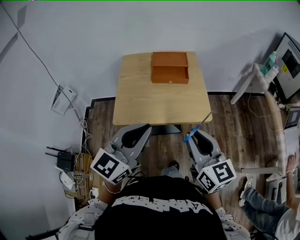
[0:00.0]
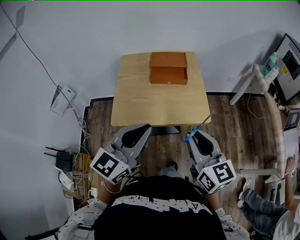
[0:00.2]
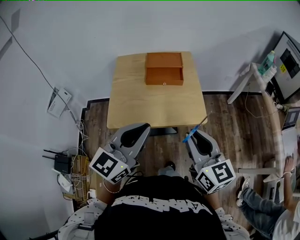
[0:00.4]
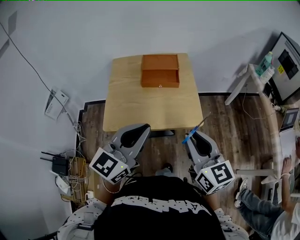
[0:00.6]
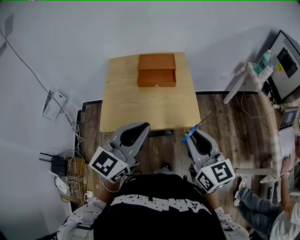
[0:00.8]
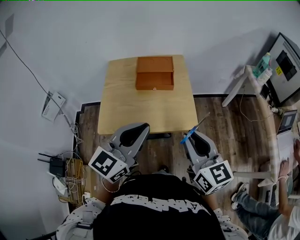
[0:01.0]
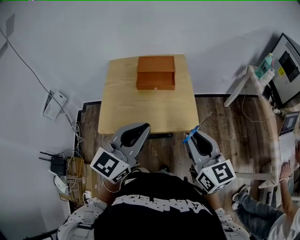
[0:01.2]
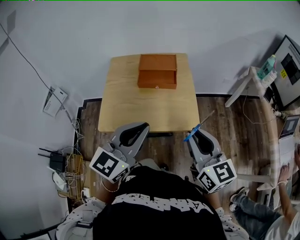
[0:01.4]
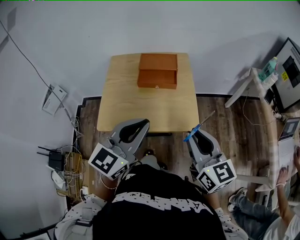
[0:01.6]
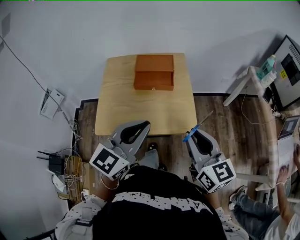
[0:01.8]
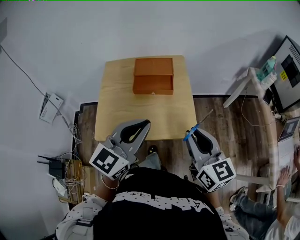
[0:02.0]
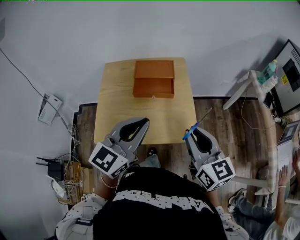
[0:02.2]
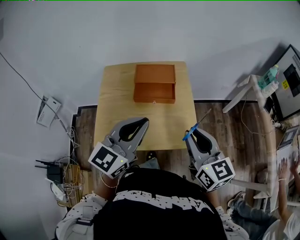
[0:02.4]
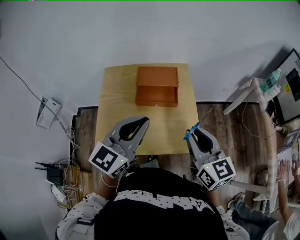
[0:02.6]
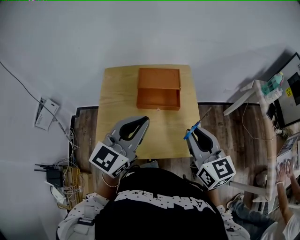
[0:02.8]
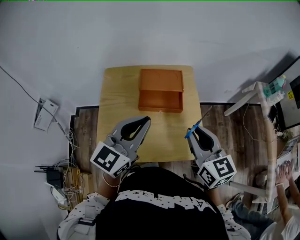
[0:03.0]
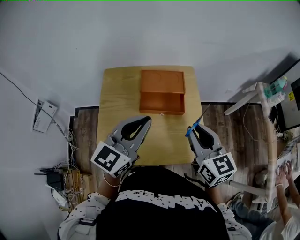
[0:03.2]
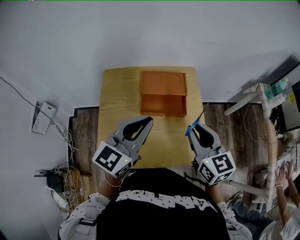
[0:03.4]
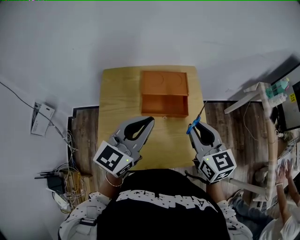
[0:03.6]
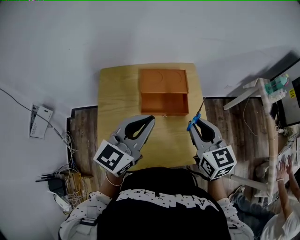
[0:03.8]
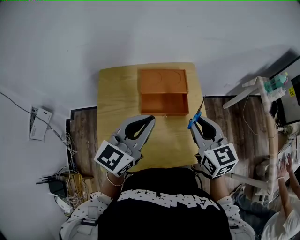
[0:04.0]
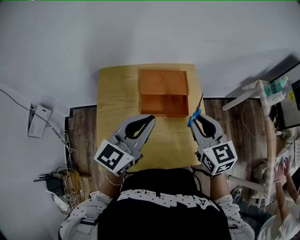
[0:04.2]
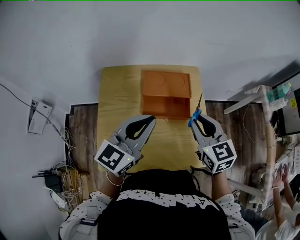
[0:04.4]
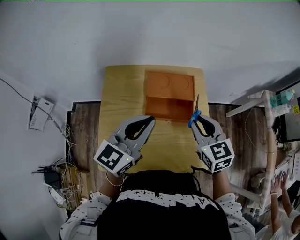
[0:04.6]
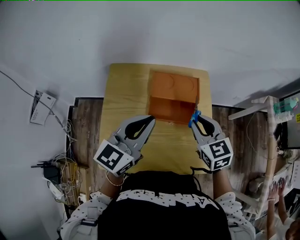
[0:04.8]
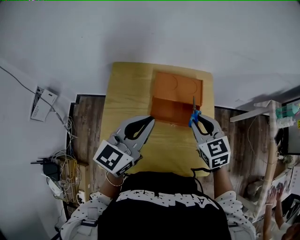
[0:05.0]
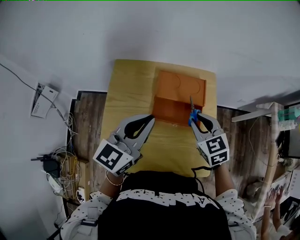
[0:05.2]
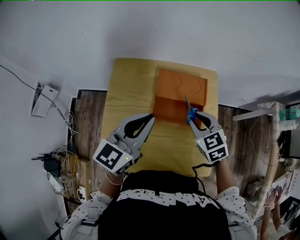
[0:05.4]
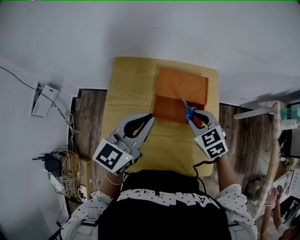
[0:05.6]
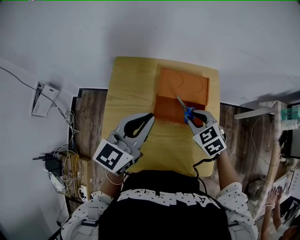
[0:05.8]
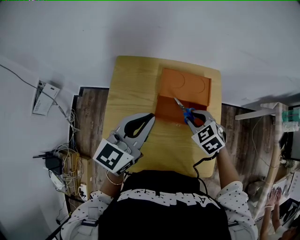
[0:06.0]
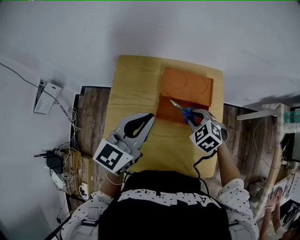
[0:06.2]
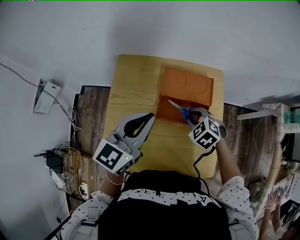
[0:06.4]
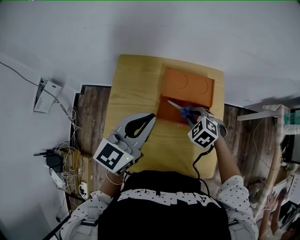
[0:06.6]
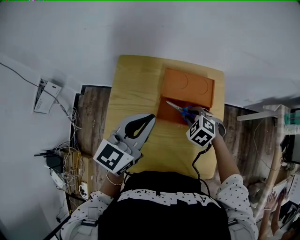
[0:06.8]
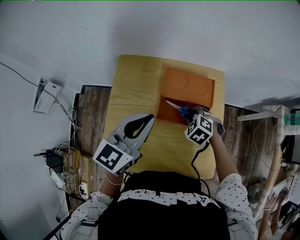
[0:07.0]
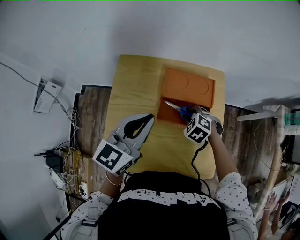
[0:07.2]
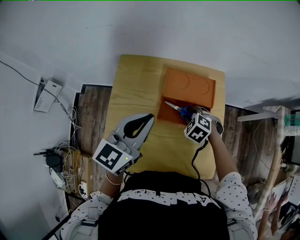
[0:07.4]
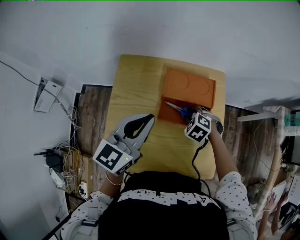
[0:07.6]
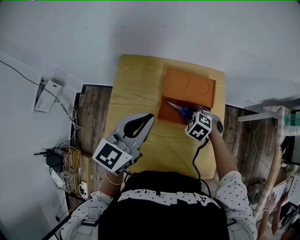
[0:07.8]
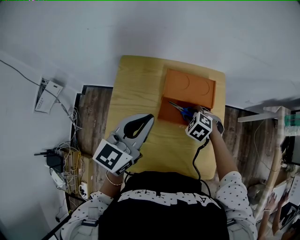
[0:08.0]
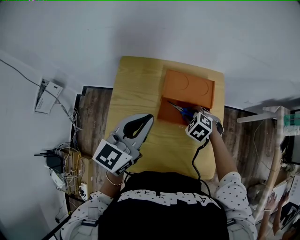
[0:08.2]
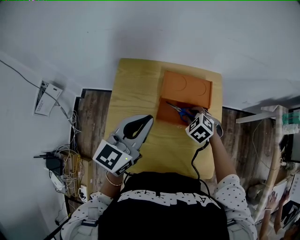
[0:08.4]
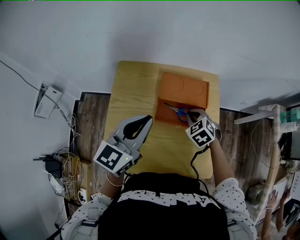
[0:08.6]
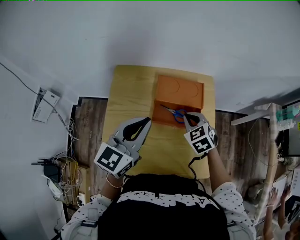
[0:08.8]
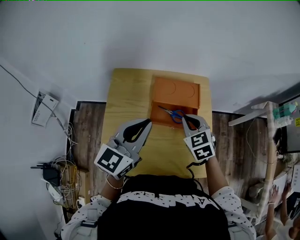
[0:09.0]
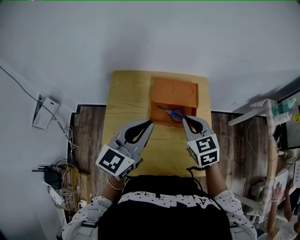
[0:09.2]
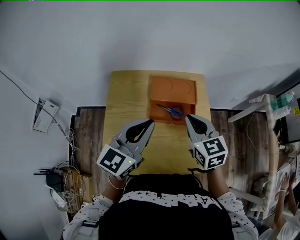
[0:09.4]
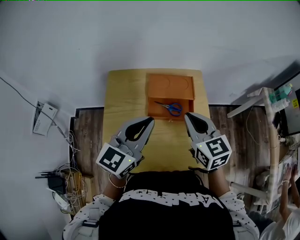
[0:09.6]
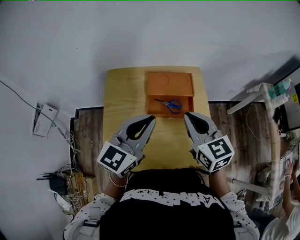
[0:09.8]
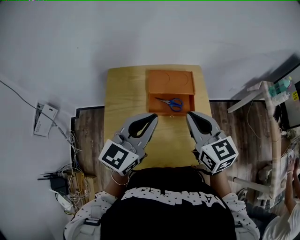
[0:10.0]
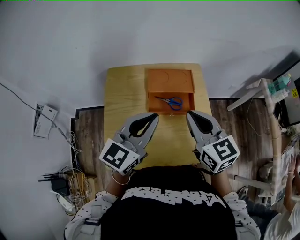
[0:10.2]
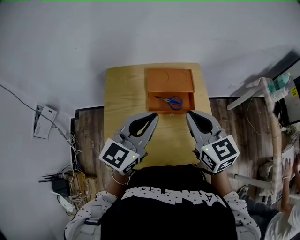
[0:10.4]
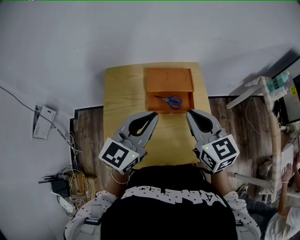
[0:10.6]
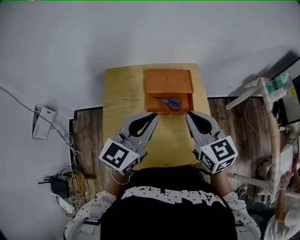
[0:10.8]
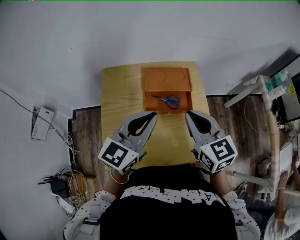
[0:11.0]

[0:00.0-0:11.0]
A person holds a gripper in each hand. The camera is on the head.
0:00.0 to 0:01.6: The two grippers go about 10 cm forward and to the right.
0:01.6 to 0:03.2: The grippers both shift forward by about 20 cm.
0:03.2 to 0:04.8: The right gripper heads forward and downward, covering approximately 15 cm, and turns by roughly 20 degrees, while the left gripper goes approximately 10 cm forward and to the left.
0:04.8 to 0:06.2: The right gripper goes roughly 10 cm downward, and turns by roughly 40 degrees.
0:06.2 to 0:07.8: The right gripper goes about 5 cm downward.
0:07.8 to 0:09.4: The left gripper shifts about 5 cm backward. Meanwhile the right gripper shifts some 20 cm upward, angles its fingers upward, by some 50 degrees, and closes its fingers.
0:09.4 to 0:11.0: The right gripper ends up approximately 5 cm from where it was.

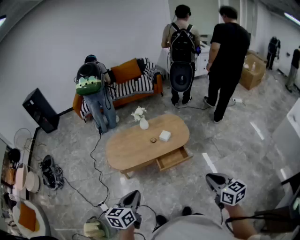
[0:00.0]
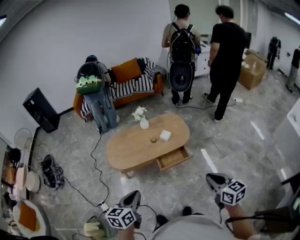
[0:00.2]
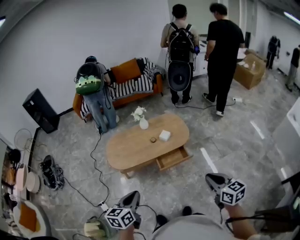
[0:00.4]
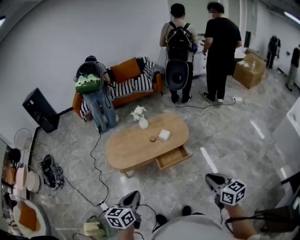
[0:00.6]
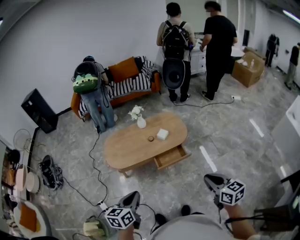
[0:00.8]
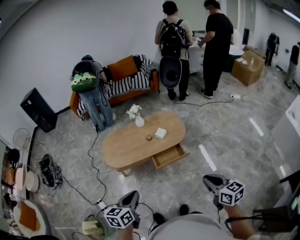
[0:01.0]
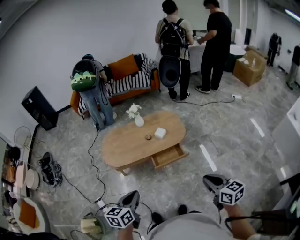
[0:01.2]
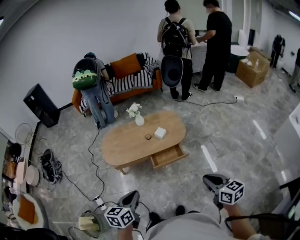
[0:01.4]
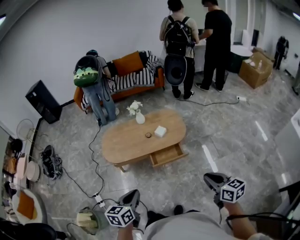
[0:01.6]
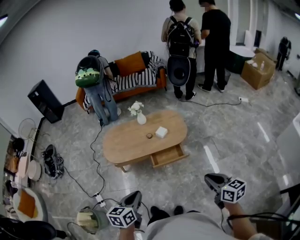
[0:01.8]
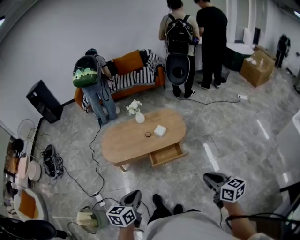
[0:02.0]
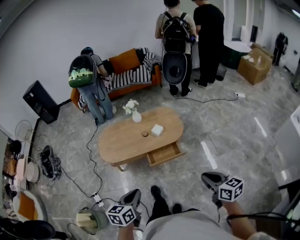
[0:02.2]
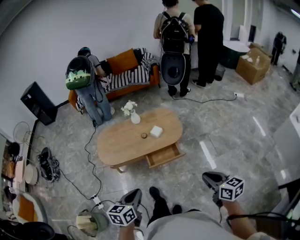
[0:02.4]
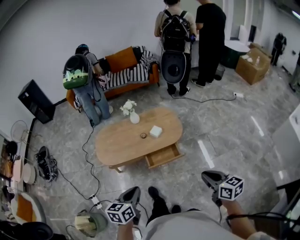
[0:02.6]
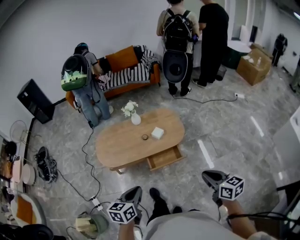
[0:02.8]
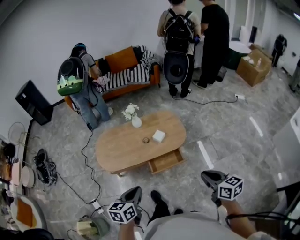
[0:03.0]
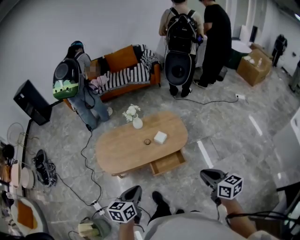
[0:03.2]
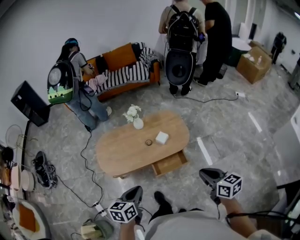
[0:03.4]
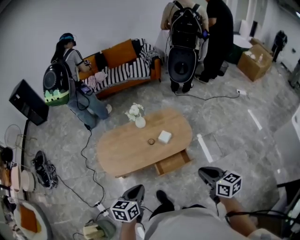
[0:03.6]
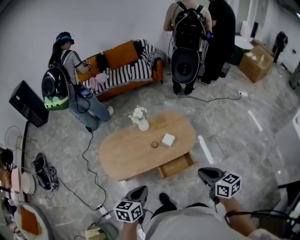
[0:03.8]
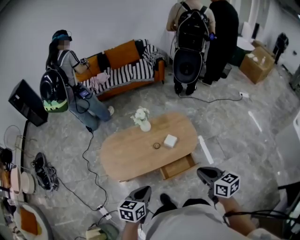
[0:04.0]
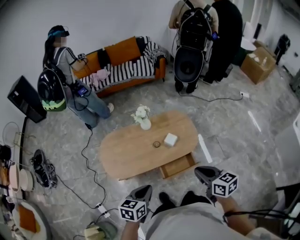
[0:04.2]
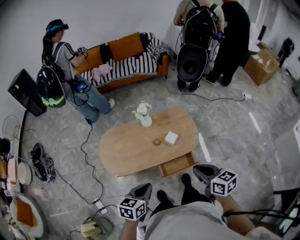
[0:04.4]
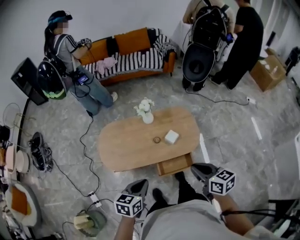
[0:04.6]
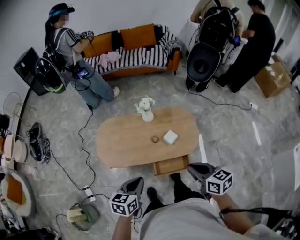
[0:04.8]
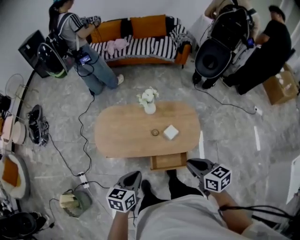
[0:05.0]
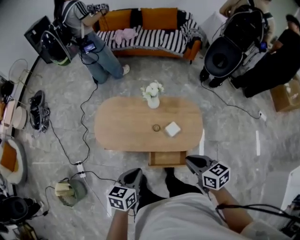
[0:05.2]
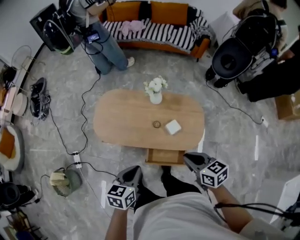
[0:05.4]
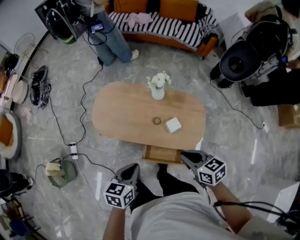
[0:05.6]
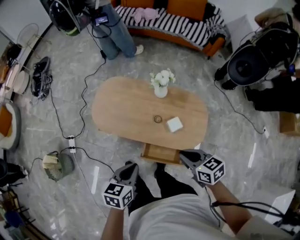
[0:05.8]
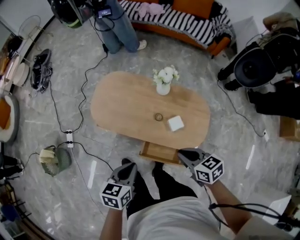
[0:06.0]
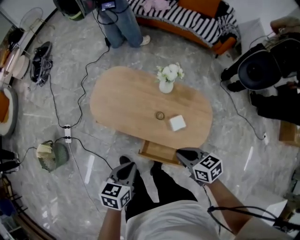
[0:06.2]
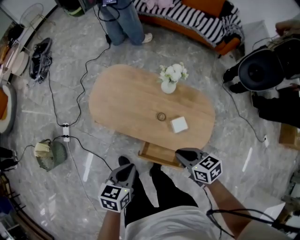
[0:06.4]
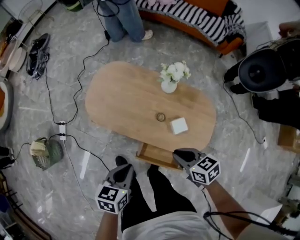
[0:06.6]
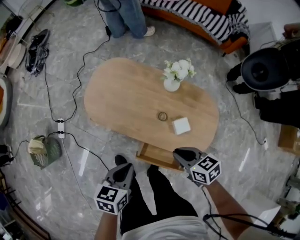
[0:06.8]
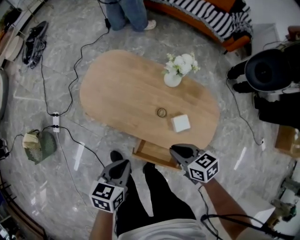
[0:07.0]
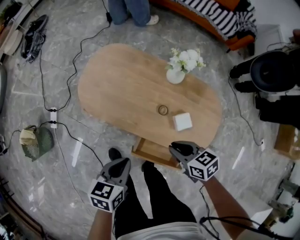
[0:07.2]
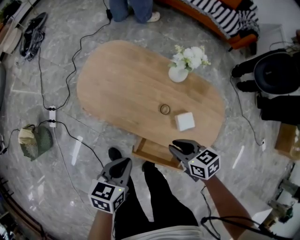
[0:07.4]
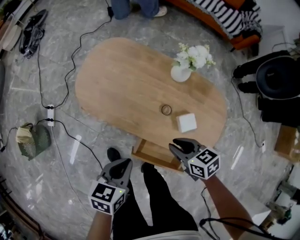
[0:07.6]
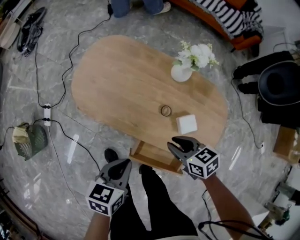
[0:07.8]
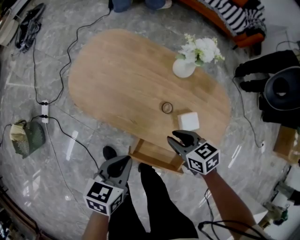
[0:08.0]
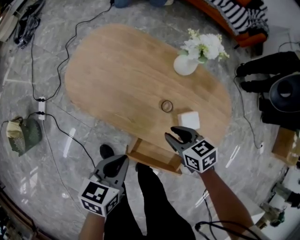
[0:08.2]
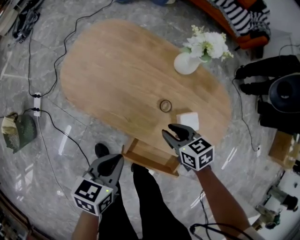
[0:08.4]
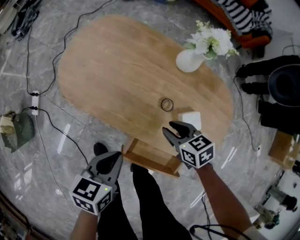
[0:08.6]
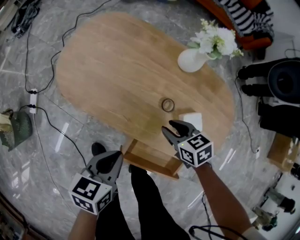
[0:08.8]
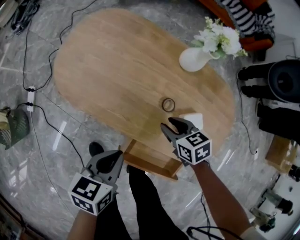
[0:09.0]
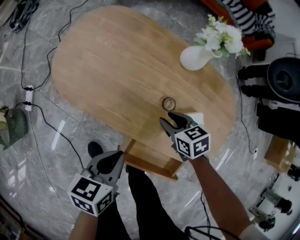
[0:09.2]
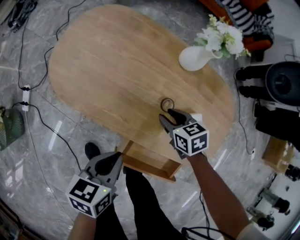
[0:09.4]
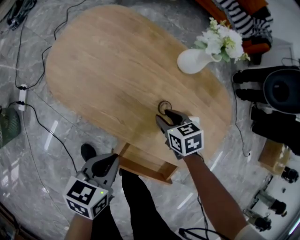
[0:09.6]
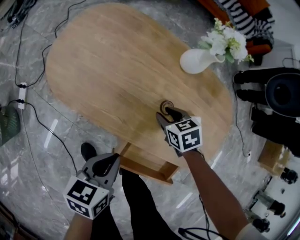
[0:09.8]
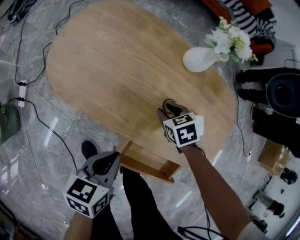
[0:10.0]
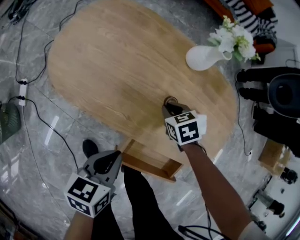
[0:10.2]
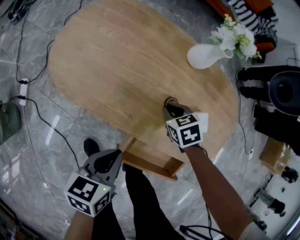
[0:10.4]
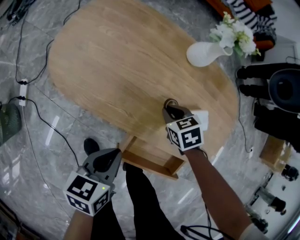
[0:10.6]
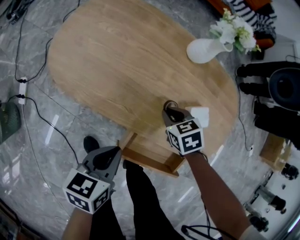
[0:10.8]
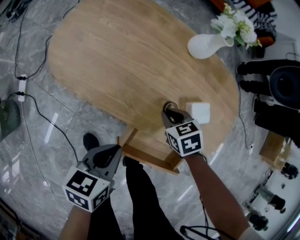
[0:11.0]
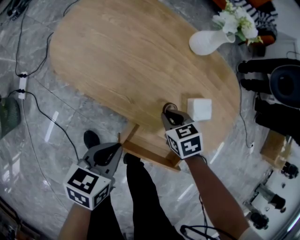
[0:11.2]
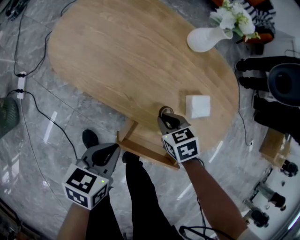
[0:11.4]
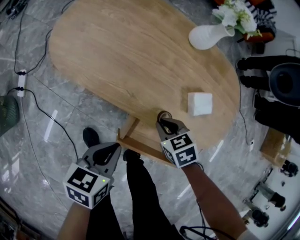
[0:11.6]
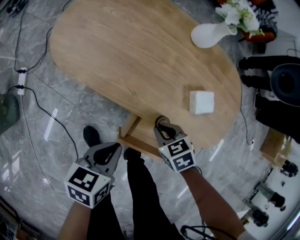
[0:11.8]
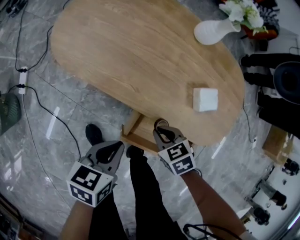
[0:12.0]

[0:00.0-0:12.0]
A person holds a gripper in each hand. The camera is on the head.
0:00.0 to 0:01.6: The two grippers go roughly 10 cm to the right.
0:01.6 to 0:03.0: Both grippers move forward, about 15 cm.
0:03.0 to 0:04.4: The right gripper moves forward and to the left, roughly 25 cm. Meanwhile the left gripper goes approximately 15 cm forward.
0:04.4 to 0:06.0: The right gripper shifts by roughly 20 cm, and changes its angle by roughly 40 degrees. Meanwhile the left gripper changes place by approximately 10 cm, and changes its angle by roughly 40 degrees.
0:06.0 to 0:07.6: The two grippers go about 20 cm downward.
0:07.6 to 0:09.0: Both grippers move downward, approximately 15 cm.
0:09.0 to 0:10.4: The right gripper goes about 5 cm downward, and closes its fingers.
0:10.4 to 0:12.0: The left gripper goes roughly 5 cm backward, while the right gripper travels backward by about 20 cm.

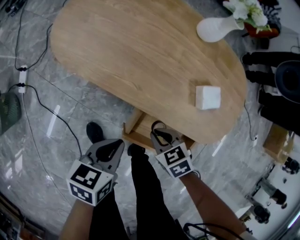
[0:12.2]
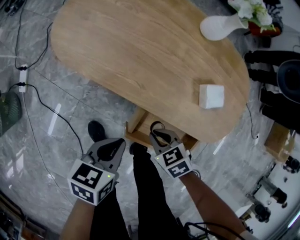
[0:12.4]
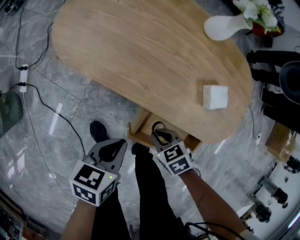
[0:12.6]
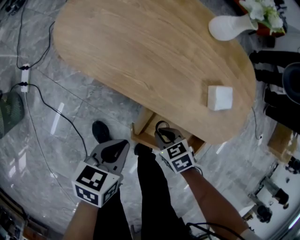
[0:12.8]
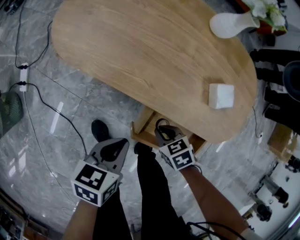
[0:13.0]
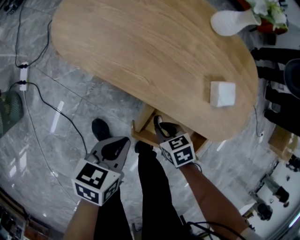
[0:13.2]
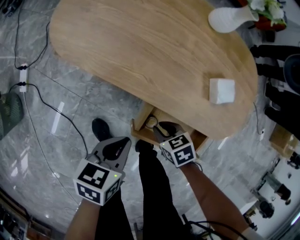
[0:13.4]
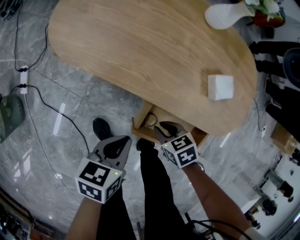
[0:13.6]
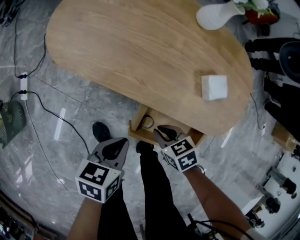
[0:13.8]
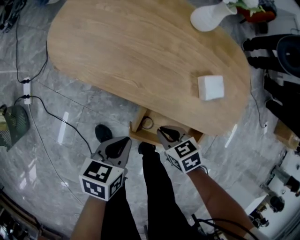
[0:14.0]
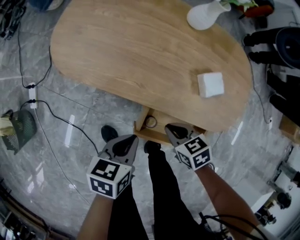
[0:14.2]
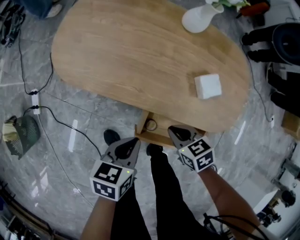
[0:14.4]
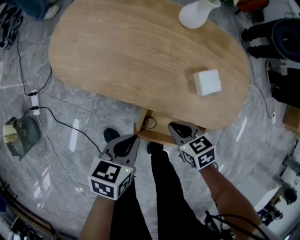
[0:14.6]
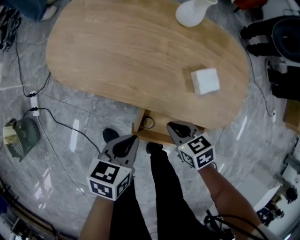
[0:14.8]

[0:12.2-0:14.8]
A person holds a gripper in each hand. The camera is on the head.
0:12.2 to 0:13.4: The right gripper moves downward, some 5 cm.
0:13.4 to 0:14.8: The right gripper shifts approximately 10 cm upward, while the left gripper shifts by about 5 cm.
